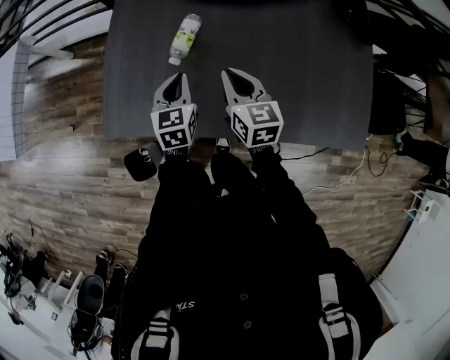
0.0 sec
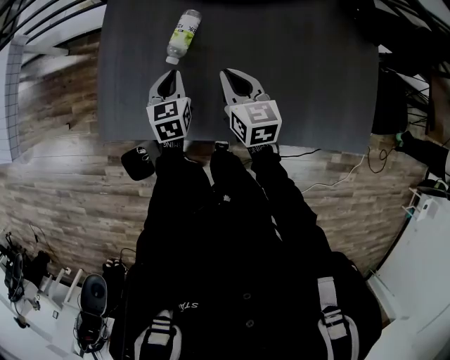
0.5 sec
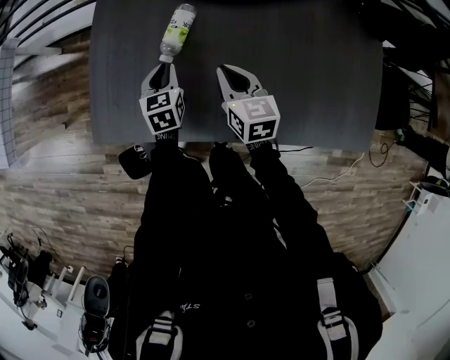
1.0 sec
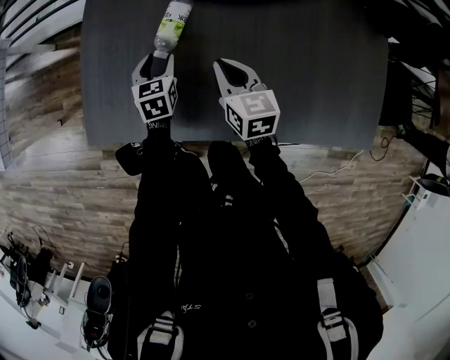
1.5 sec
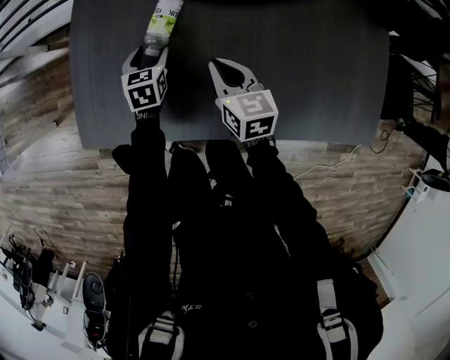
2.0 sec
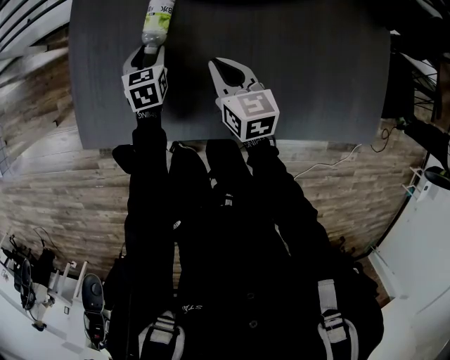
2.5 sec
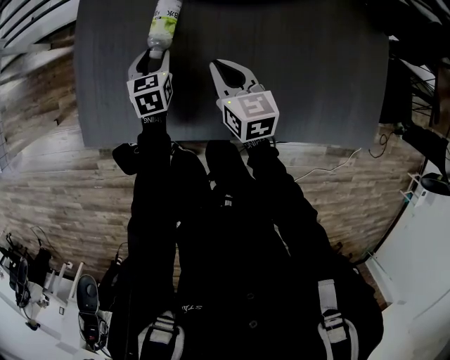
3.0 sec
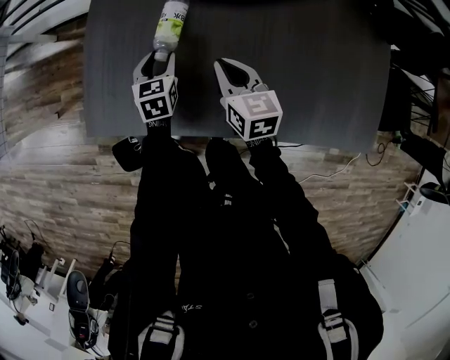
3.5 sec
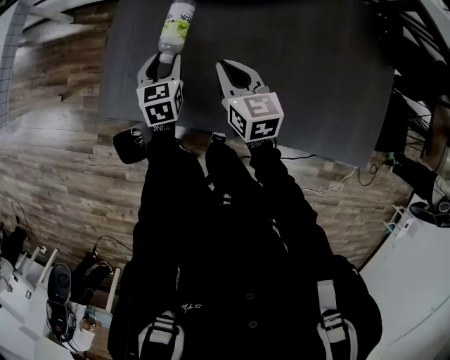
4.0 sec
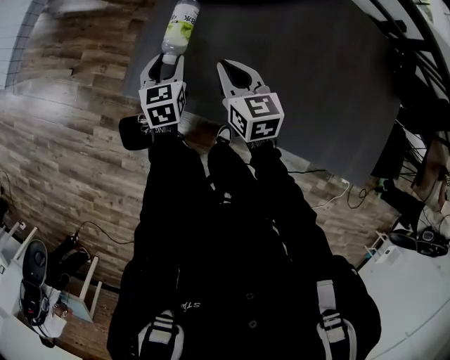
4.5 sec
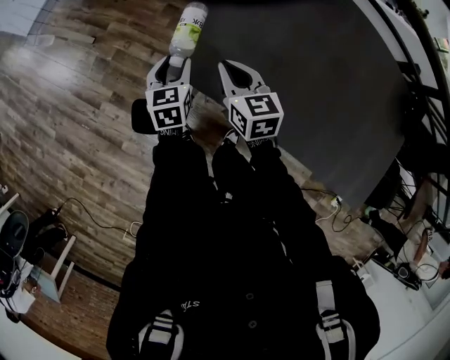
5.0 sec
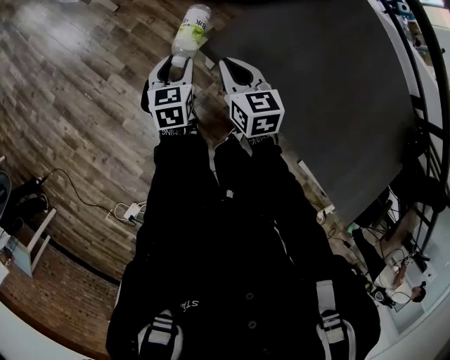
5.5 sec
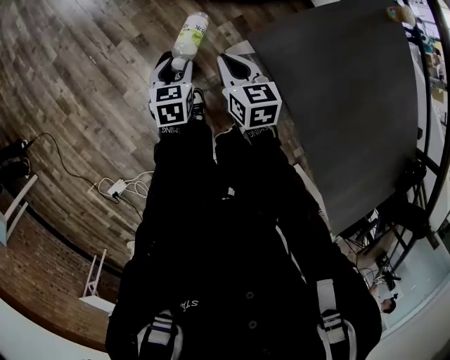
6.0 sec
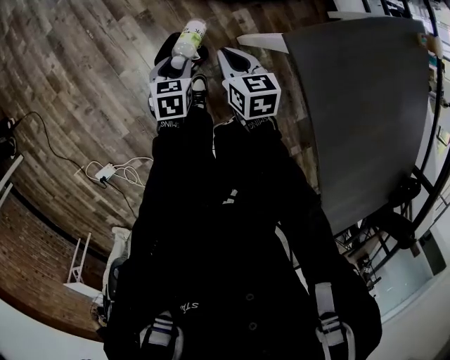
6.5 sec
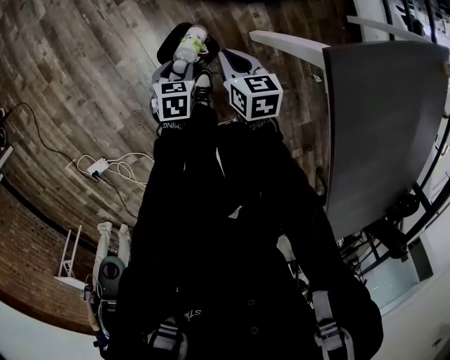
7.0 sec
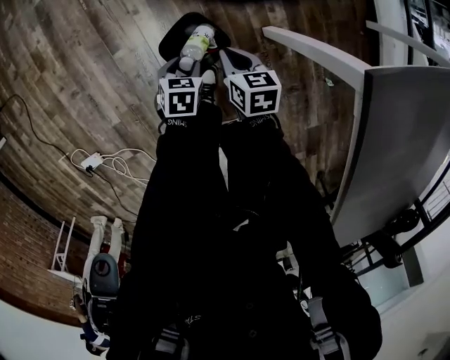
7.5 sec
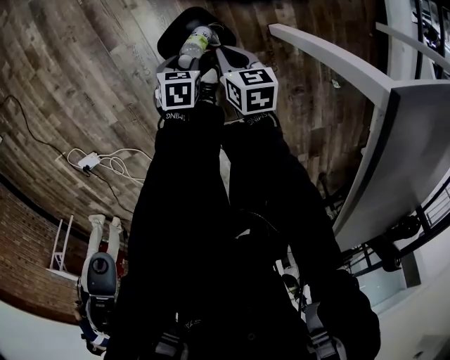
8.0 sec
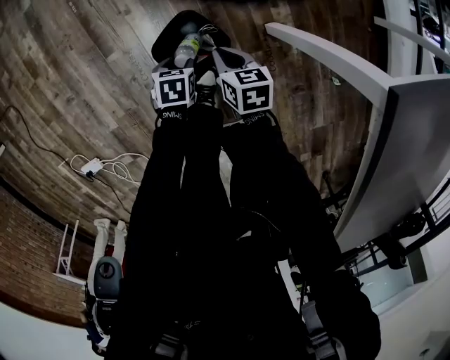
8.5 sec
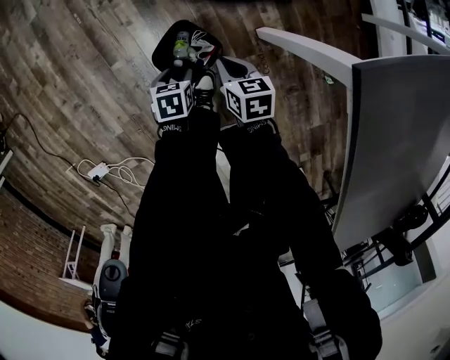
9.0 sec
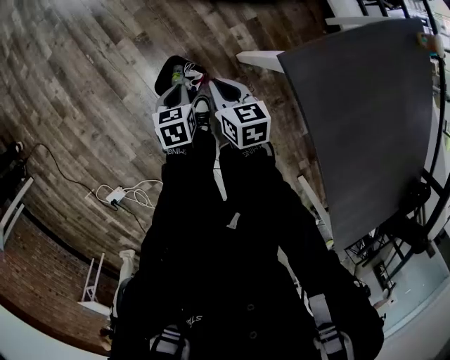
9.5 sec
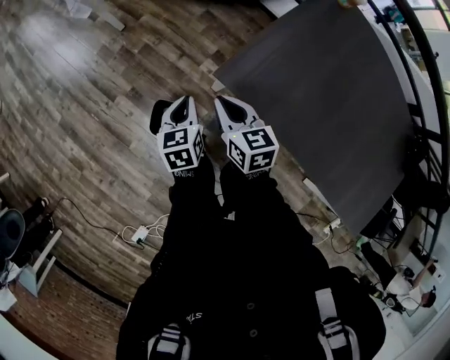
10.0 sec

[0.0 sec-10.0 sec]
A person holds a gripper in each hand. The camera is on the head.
0.0 sec to 2.0 sec: The left gripper travels downward and forward by about 20 cm, and opens its fingers; the right gripper shifts roughly 15 cm downward.
2.0 sec to 4.0 sec: The left gripper is displaced to the left, upward and backward by some 15 cm, while the right gripper travels to the left by approximately 10 cm.
4.0 sec to 6.0 sec: The pair of grippers is taken about 50 cm. The left gripper changes its angle by about 40 degrees. The right gripper turns by some 40 degrees.
6.0 sec to 8.0 sec: The grippers both shift downward by roughly 40 cm. The left gripper rotates some 30 degrees, while the right gripper swivels roughly 20 degrees.
8.0 sec to 10.0 sec: The grippers both shift upward and to the right by some 50 cm. The left gripper turns by roughly 30 degrees, and closes; the right gripper changes its angle by approximately 40 degrees.

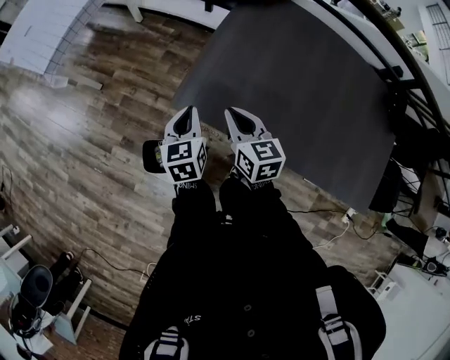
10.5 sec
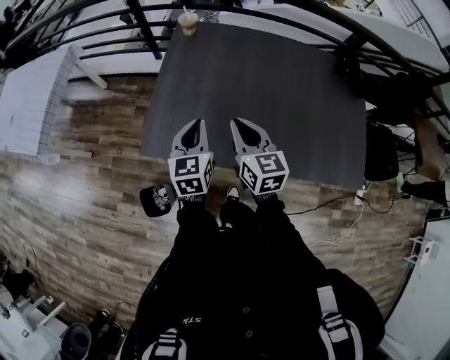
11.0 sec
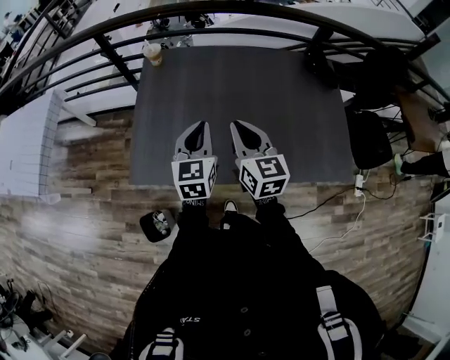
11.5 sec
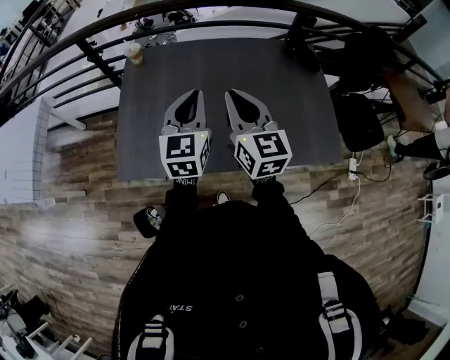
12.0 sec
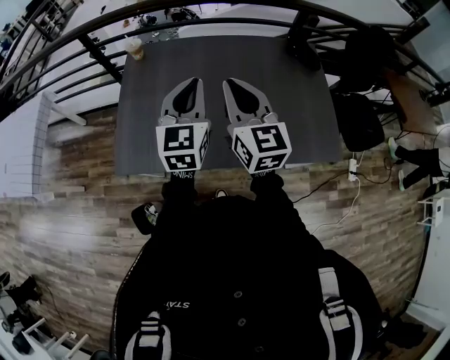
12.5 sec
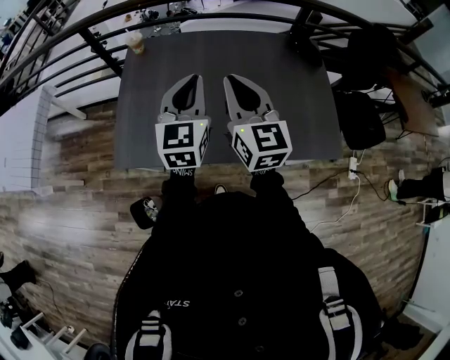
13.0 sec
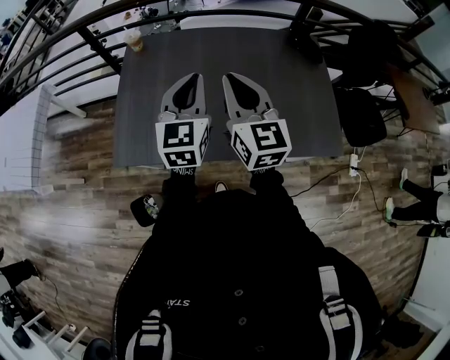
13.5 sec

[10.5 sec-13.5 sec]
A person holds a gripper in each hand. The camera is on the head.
10.5 sec to 12.0 sec: The left gripper changes place by approximately 50 cm, and swivels roughly 50 degrees. Meanwhile the right gripper ends up about 40 cm from where it was, and rotates roughly 40 degrees.
12.0 sec to 13.5 sec: The grippers make only small movements.

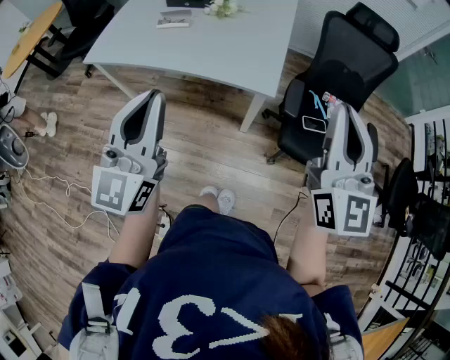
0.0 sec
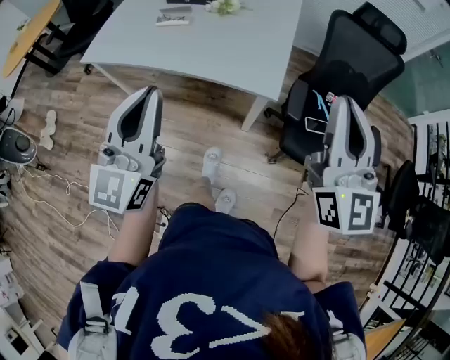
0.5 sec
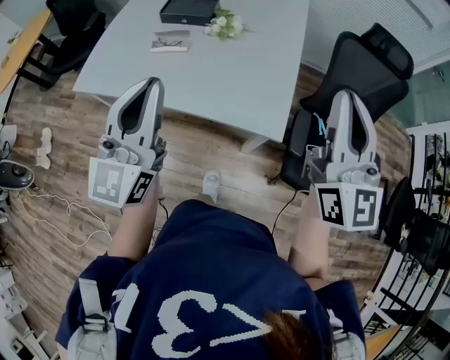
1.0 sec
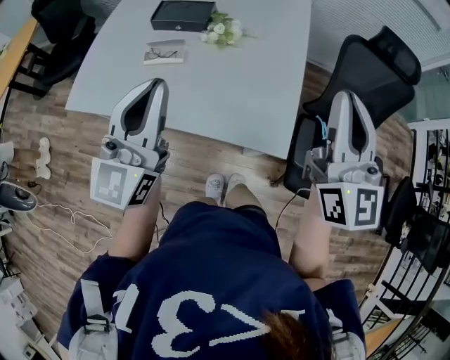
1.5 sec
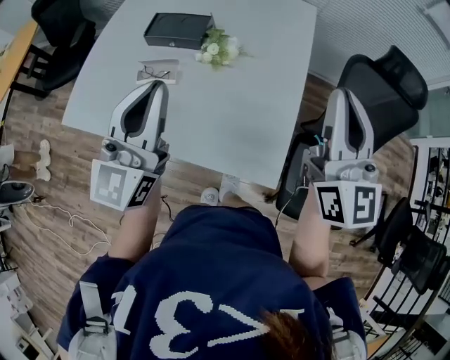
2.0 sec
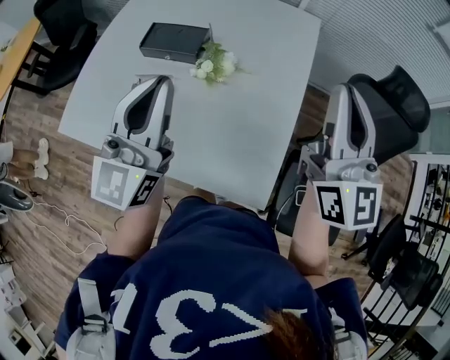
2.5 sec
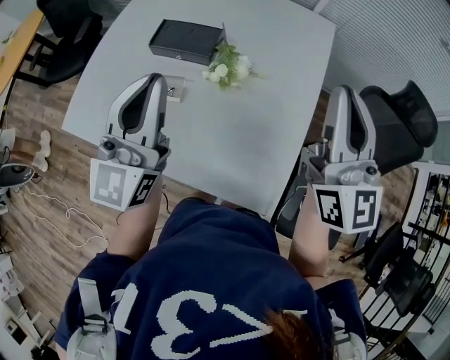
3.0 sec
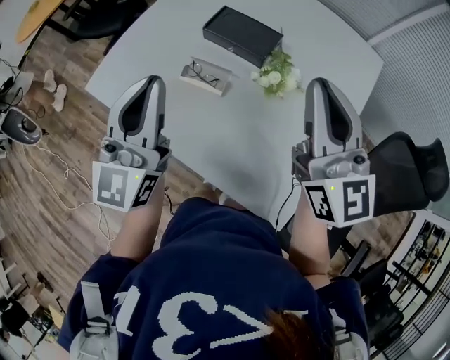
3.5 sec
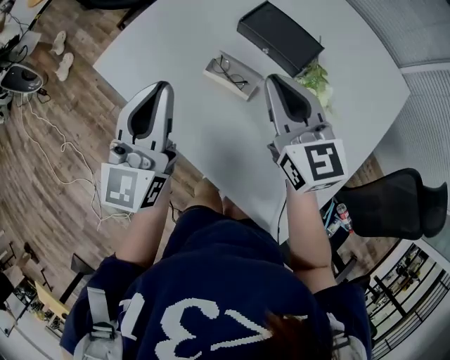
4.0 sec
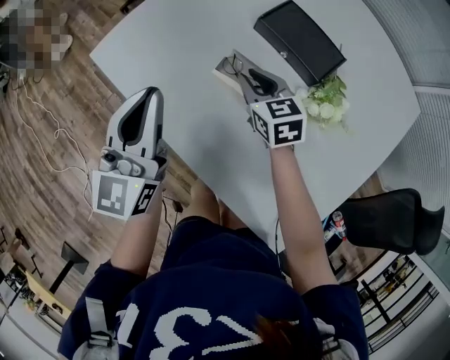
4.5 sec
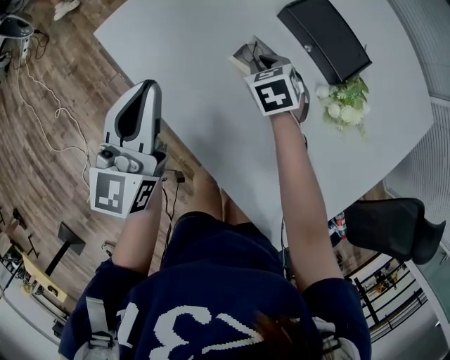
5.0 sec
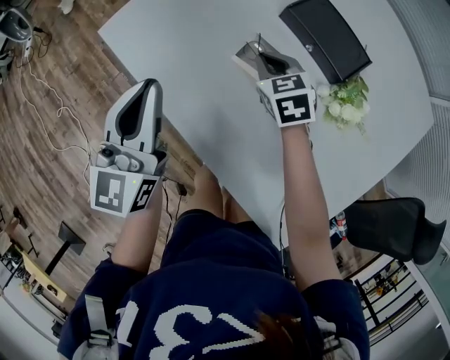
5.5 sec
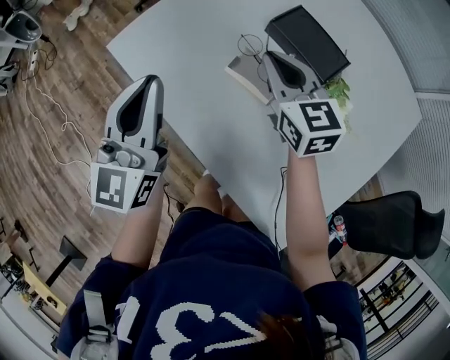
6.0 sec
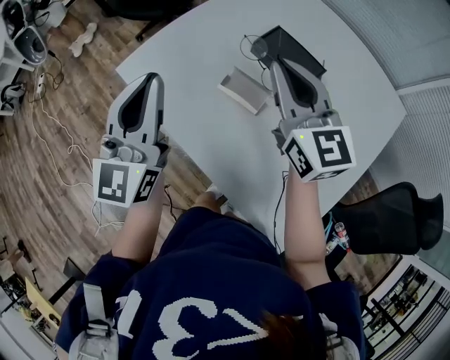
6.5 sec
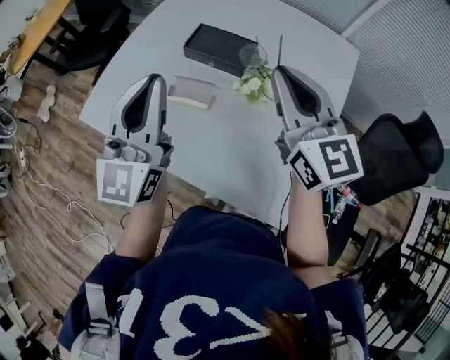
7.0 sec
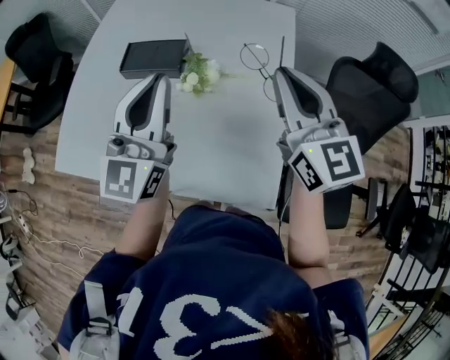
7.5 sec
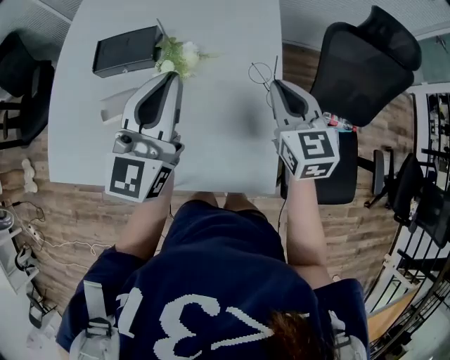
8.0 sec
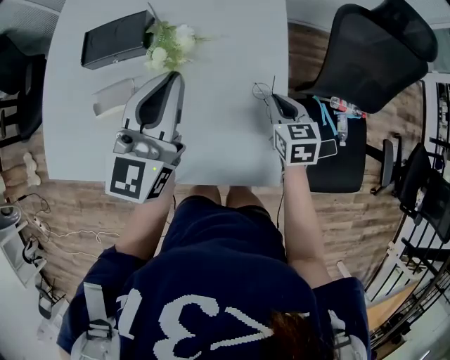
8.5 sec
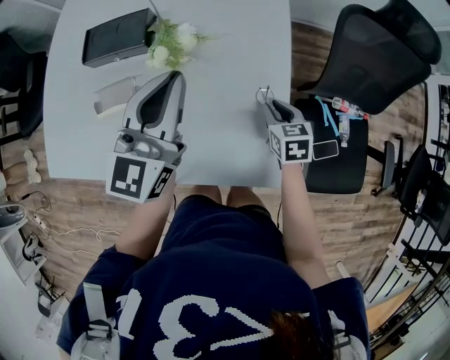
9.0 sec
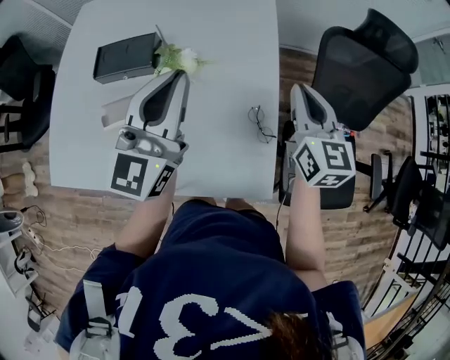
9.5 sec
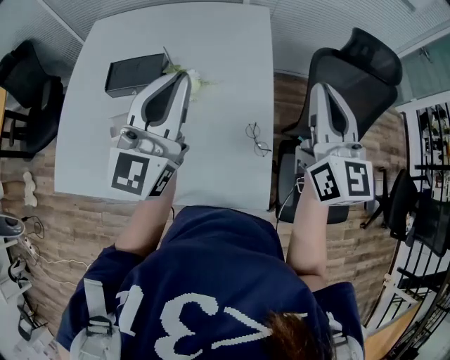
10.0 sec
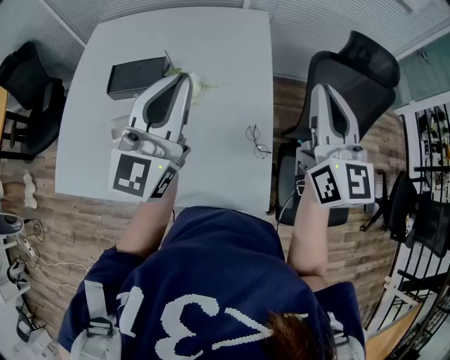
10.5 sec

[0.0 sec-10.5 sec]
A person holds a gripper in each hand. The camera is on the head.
0.0 sec to 2.0 sec: Both grippers are carried forward, approximately 40 cm.
2.0 sec to 4.0 sec: The left gripper changes place by roughly 25 cm, and rotates approximately 30 degrees; the right gripper shifts by roughly 40 cm, and rotates some 50 degrees.
4.0 sec to 6.5 sec: The right gripper goes downward and returns, some 25 cm each way, while the left gripper heads upward, covering approximately 5 cm.
6.5 sec to 8.5 sec: The left gripper changes place by about 40 cm, and turns by roughly 50 degrees; the right gripper shifts by approximately 50 cm, and tilts its fingers roughly 40 degrees downward.
8.5 sec to 10.5 sec: The right gripper shifts roughly 35 cm upward, and points its fingers about 50 degrees further upward. The left gripper goes roughly 15 cm upward.

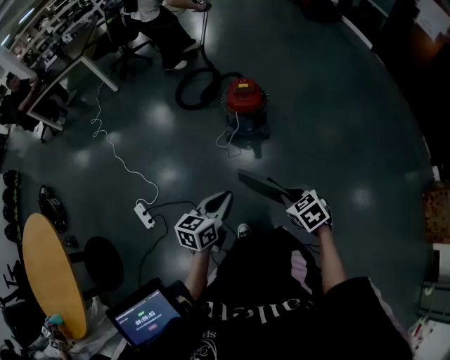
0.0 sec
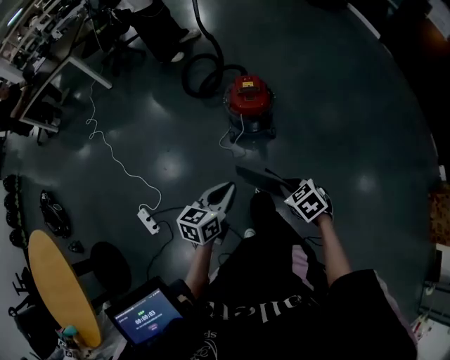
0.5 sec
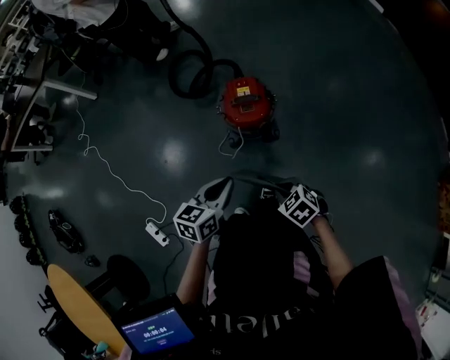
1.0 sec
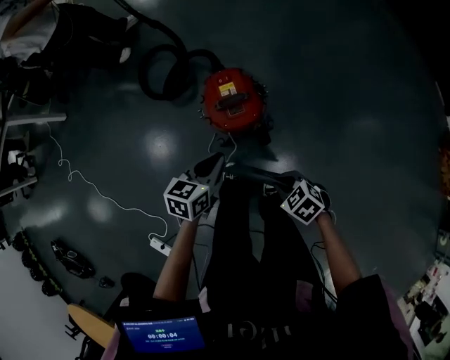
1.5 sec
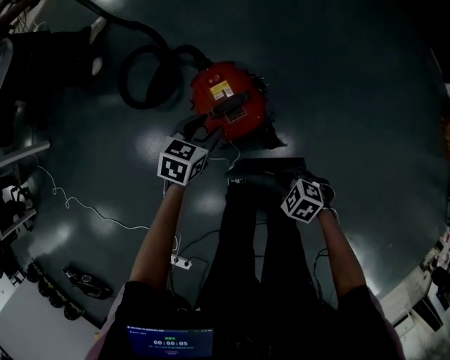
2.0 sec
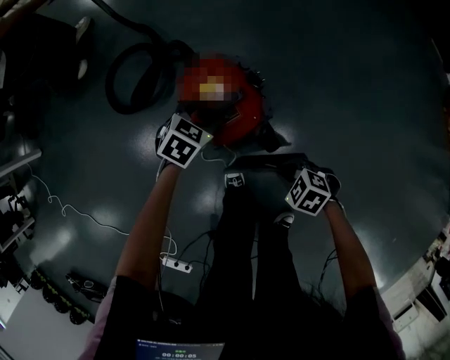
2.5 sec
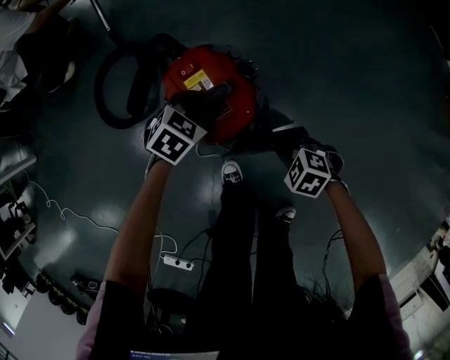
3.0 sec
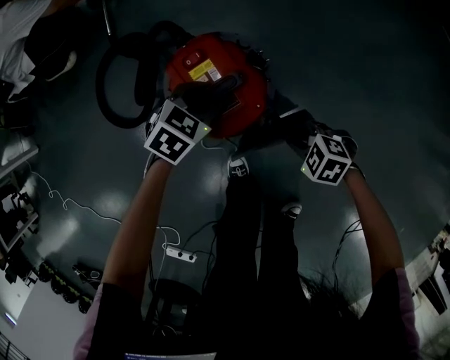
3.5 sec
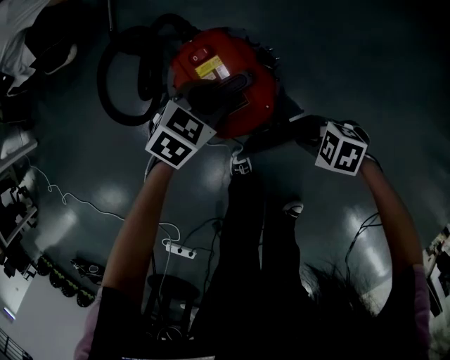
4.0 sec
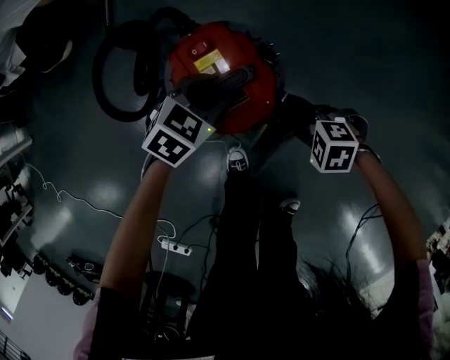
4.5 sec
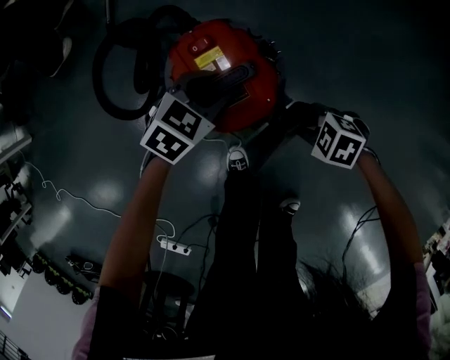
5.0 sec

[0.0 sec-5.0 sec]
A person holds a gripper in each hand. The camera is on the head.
0.0 sec to 2.5 sec: The two grippers travel together, approximately 60 cm. The left gripper tips its fingers downward by some 30 degrees, and opens its fingers.
2.5 sec to 5.0 sec: The right gripper changes place by some 10 cm.
